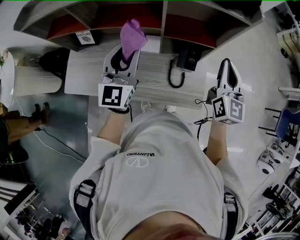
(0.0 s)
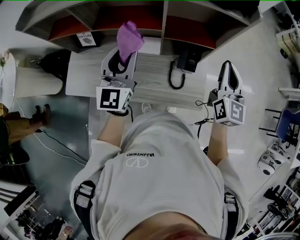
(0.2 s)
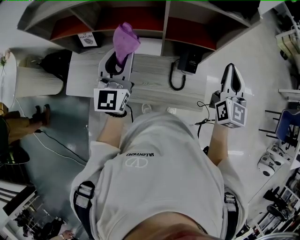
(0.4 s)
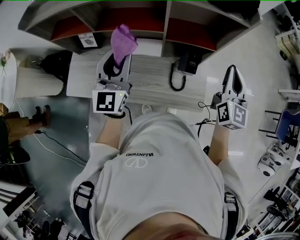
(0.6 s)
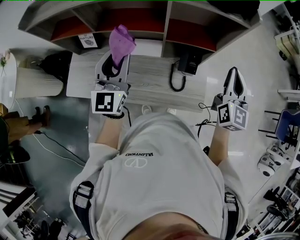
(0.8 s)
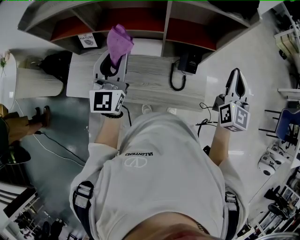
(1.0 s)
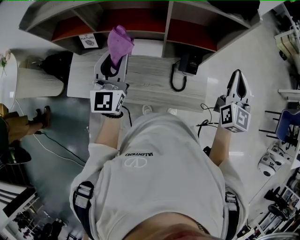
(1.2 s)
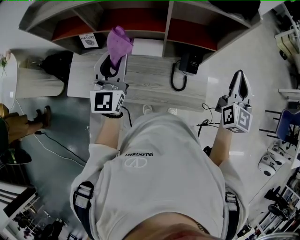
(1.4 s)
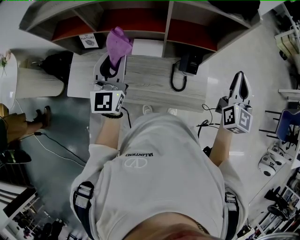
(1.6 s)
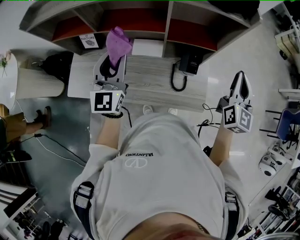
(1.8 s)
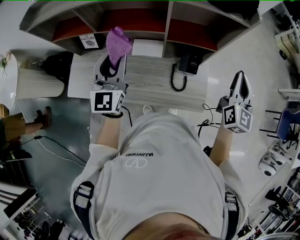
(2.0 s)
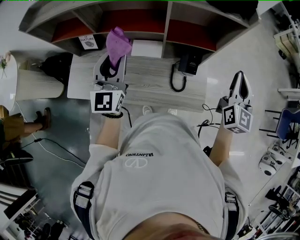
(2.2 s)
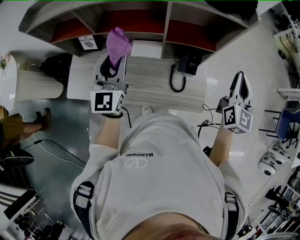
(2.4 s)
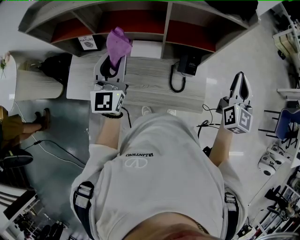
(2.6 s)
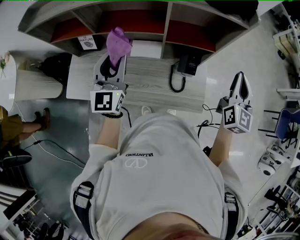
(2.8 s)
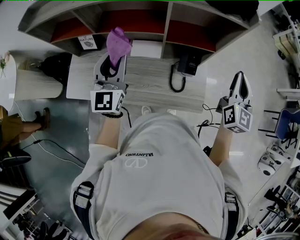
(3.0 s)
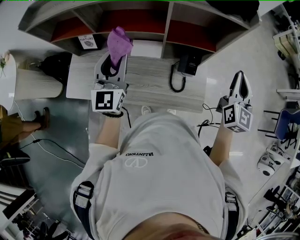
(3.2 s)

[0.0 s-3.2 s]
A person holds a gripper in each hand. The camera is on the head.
0.0 to 1.6 s: The right gripper is displaced to the right by some 5 cm; the left gripper shifts about 5 cm to the left.
1.6 to 3.2 s: The two grippers keep their place.

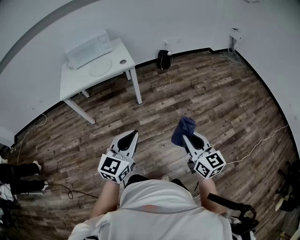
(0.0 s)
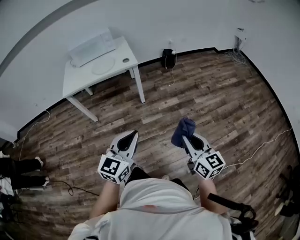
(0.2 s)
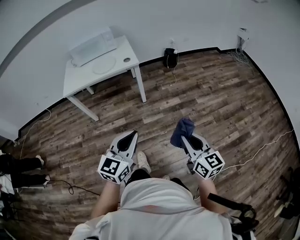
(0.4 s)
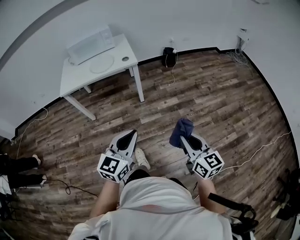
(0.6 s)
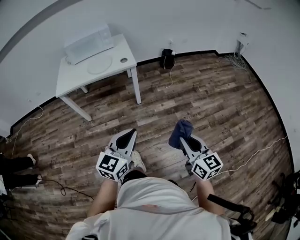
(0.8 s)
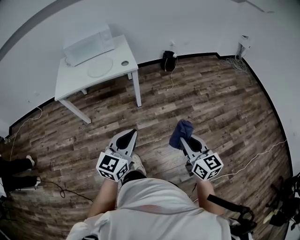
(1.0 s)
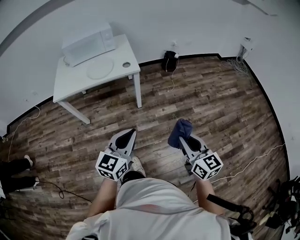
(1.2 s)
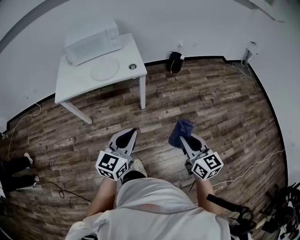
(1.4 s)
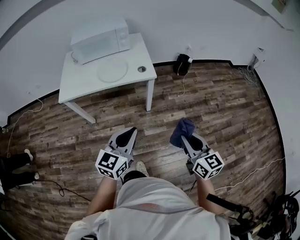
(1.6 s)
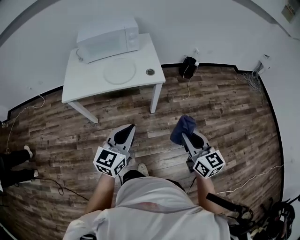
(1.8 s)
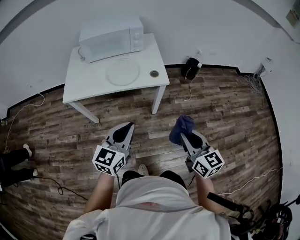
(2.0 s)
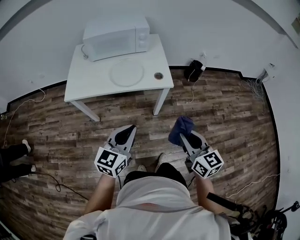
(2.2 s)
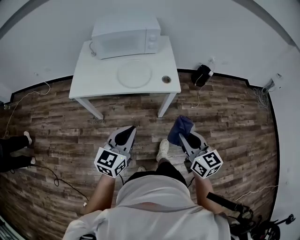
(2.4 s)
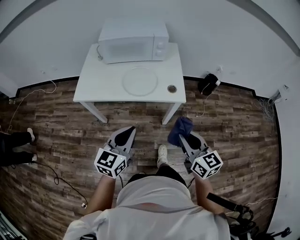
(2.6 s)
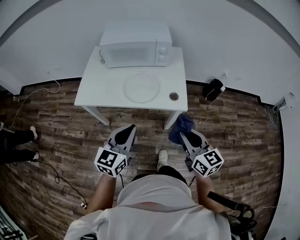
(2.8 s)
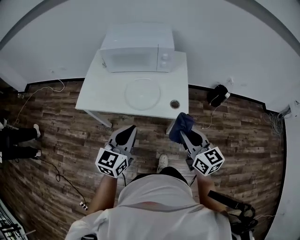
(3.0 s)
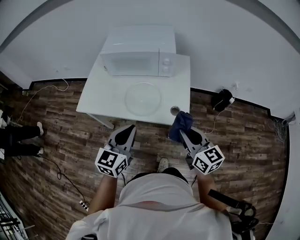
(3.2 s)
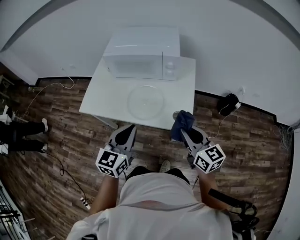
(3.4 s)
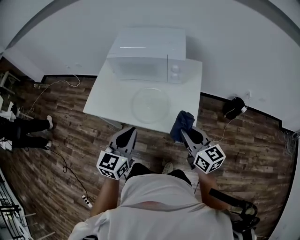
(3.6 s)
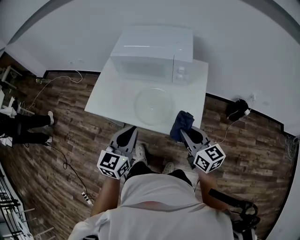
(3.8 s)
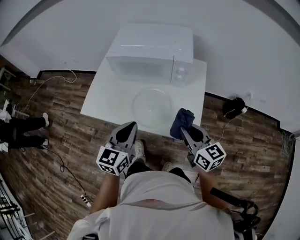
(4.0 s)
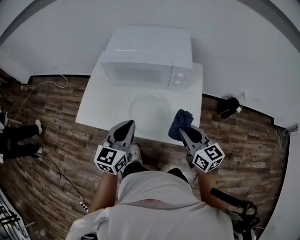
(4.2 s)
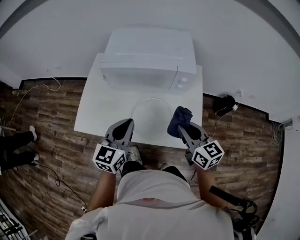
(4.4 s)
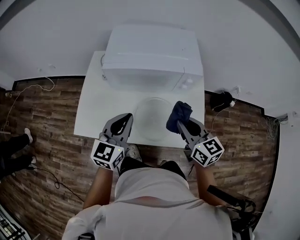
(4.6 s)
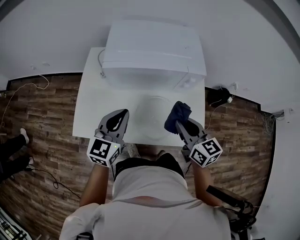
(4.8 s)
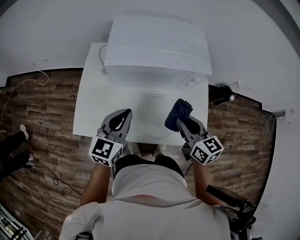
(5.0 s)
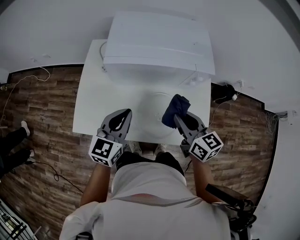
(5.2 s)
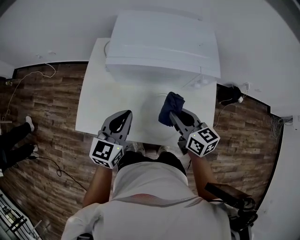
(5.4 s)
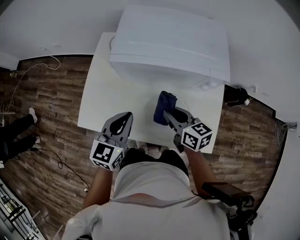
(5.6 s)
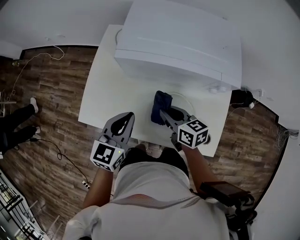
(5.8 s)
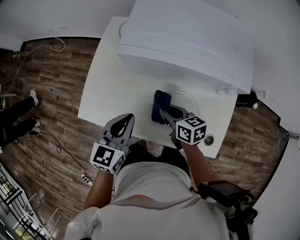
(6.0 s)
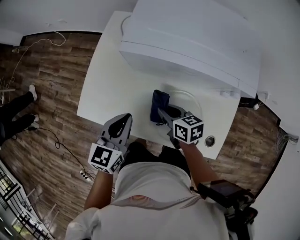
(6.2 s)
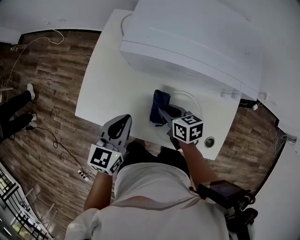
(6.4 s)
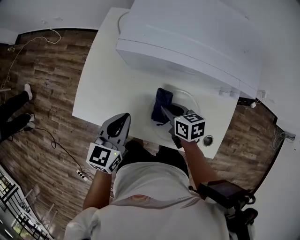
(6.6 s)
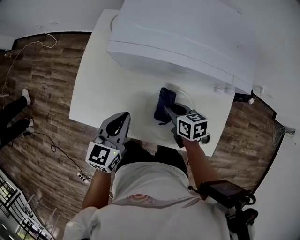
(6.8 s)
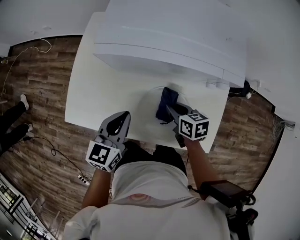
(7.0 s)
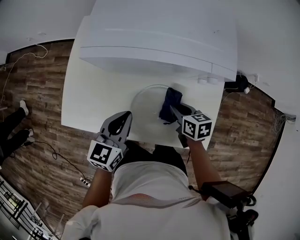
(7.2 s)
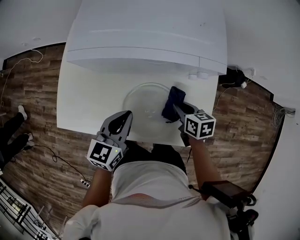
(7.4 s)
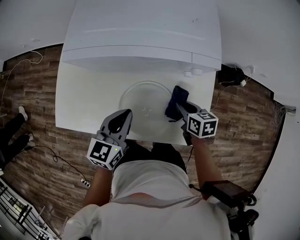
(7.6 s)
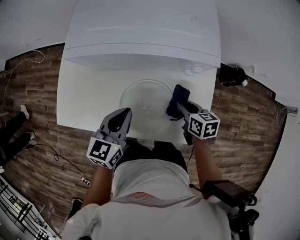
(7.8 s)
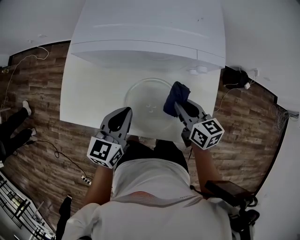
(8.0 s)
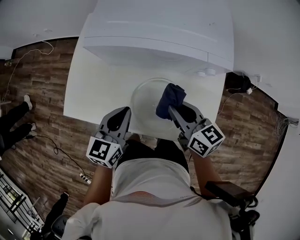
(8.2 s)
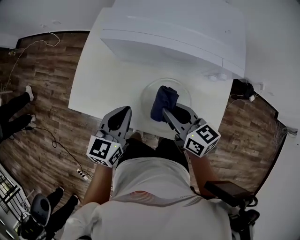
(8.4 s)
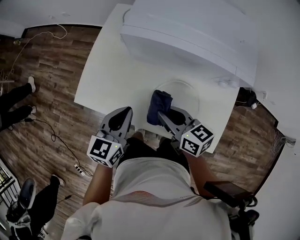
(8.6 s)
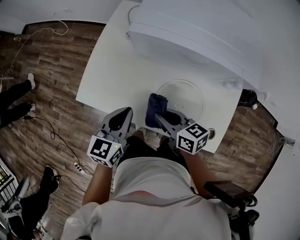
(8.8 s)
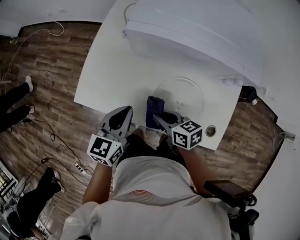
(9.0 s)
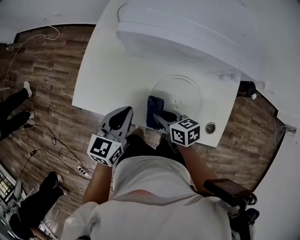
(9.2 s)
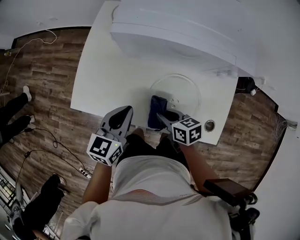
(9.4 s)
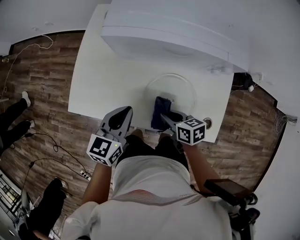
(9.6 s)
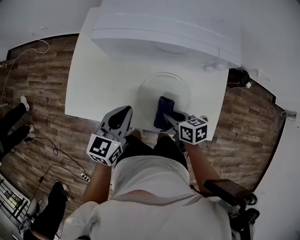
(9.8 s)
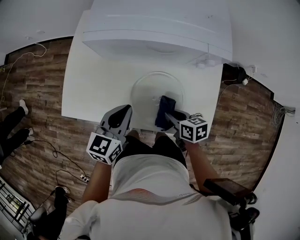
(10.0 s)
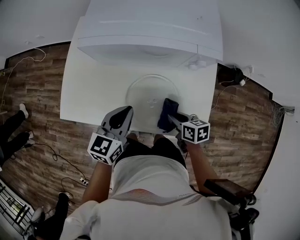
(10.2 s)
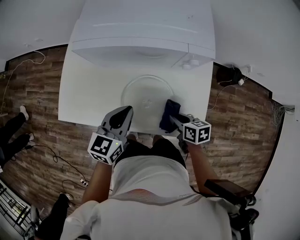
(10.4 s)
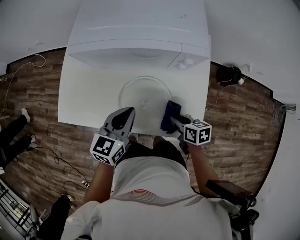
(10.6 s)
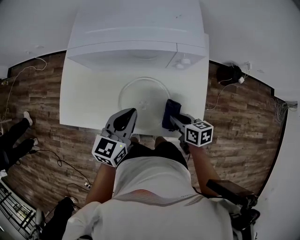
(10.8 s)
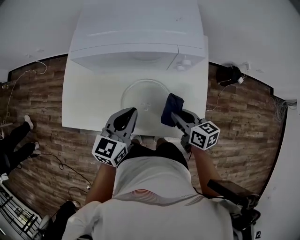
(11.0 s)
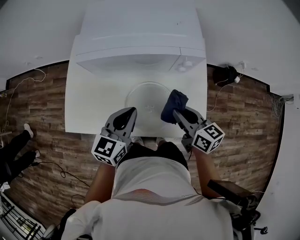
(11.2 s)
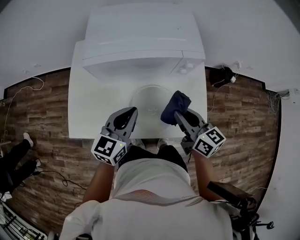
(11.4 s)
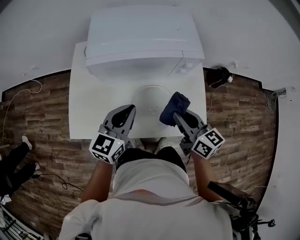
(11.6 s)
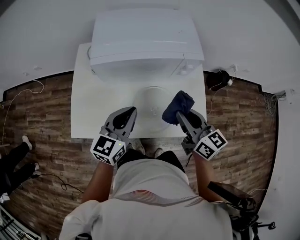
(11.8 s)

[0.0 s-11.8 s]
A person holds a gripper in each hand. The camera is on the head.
0.0 to 1.4 s: The two grippers go about 25 cm forward.
1.4 to 3.0 s: The left gripper travels forward and to the left by about 35 cm, and changes its angle by roughly 20 degrees; the right gripper shifts approximately 40 cm forward, and changes its angle by approximately 20 degrees.
3.0 to 4.4 s: The two grippers go about 25 cm forward.
4.4 to 6.0 s: The left gripper is displaced downward, to the left and forward by about 15 cm. Meanwhile the right gripper goes about 30 cm downward, to the left and forward, and swivels approximately 30 degrees.
6.0 to 7.4 s: The left gripper shifts some 10 cm to the right. Meanwhile the right gripper travels to the right by roughly 20 cm, and turns by approximately 20 degrees.
7.4 to 8.8 s: The right gripper heads to the left, covering about 20 cm, and swivels approximately 30 degrees, while the left gripper goes about 15 cm to the left.
8.8 to 10.4 s: The left gripper heads to the right, covering approximately 15 cm; the right gripper goes about 20 cm to the right and backward, and turns by roughly 30 degrees.
10.4 to 11.8 s: The right gripper is displaced upward by roughly 25 cm, and angles its fingers upward, by roughly 40 degrees, while the left gripper travels upward by about 10 cm.

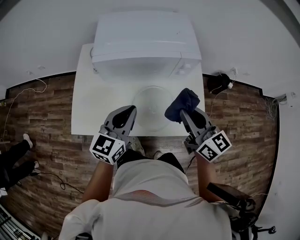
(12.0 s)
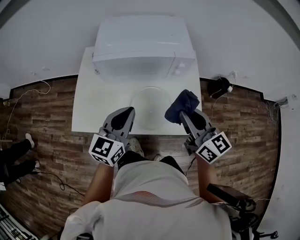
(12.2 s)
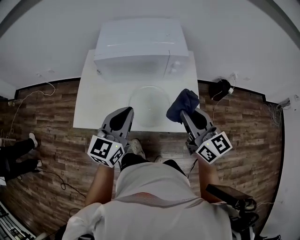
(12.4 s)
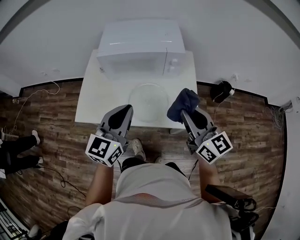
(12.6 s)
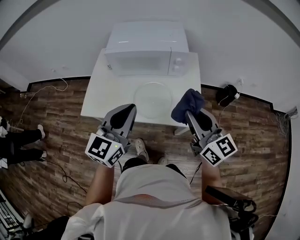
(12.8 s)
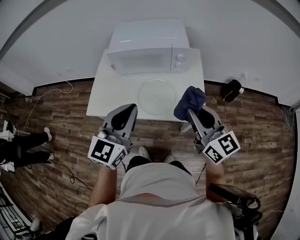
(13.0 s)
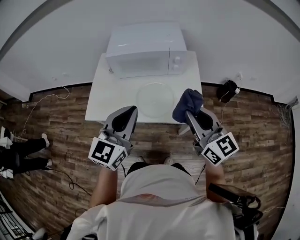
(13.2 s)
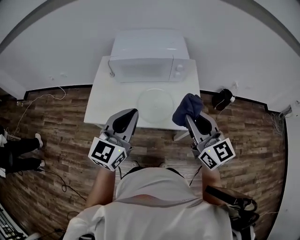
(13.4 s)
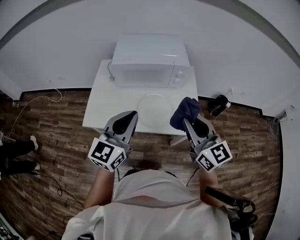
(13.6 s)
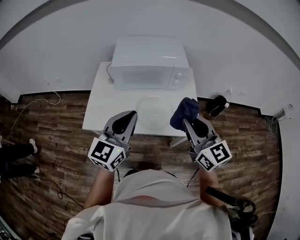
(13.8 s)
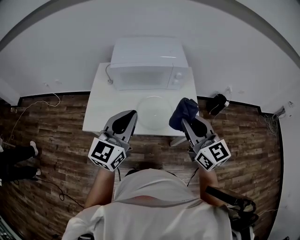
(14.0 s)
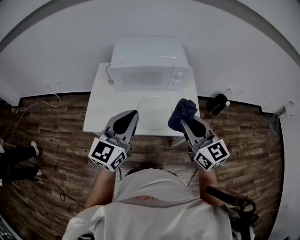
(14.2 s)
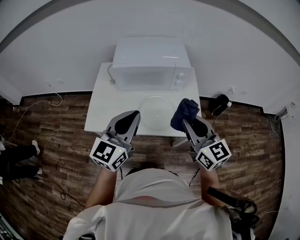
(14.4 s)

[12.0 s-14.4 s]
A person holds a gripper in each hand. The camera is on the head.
12.0 to 13.2 s: The two grippers go approximately 20 cm backward and upward.
13.2 to 14.4 s: The left gripper changes place by about 5 cm. Meanwhile the right gripper is displaced to the left by approximately 5 cm.

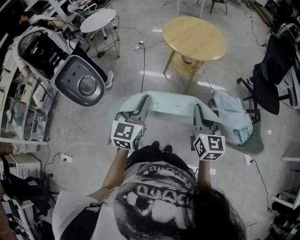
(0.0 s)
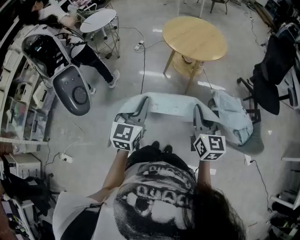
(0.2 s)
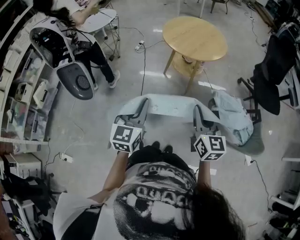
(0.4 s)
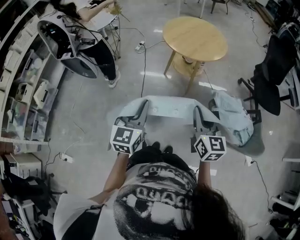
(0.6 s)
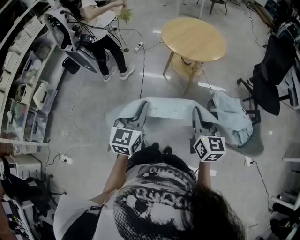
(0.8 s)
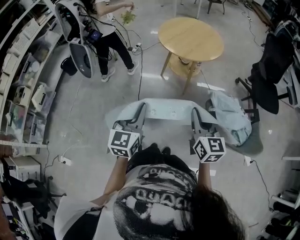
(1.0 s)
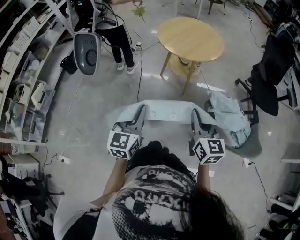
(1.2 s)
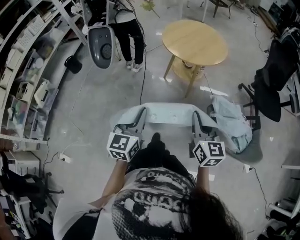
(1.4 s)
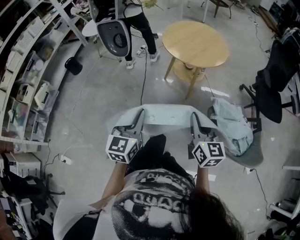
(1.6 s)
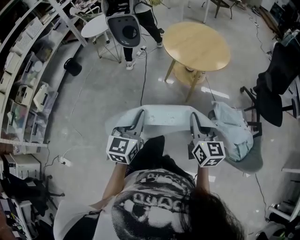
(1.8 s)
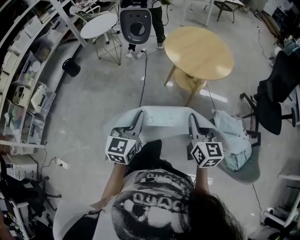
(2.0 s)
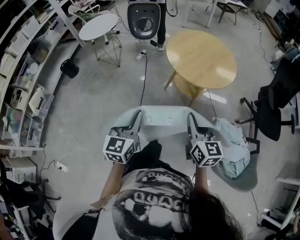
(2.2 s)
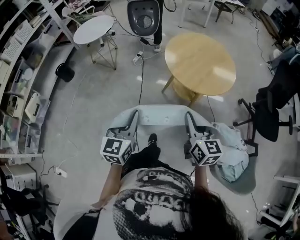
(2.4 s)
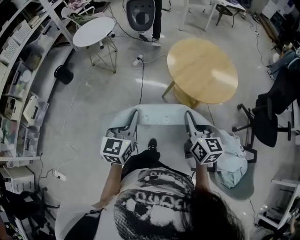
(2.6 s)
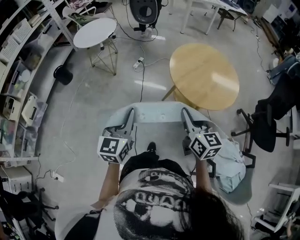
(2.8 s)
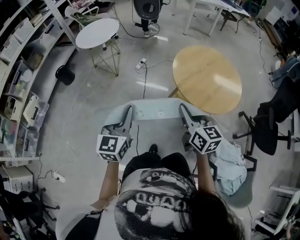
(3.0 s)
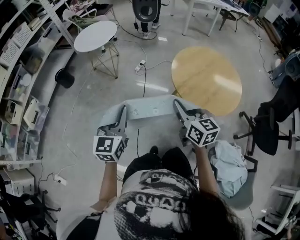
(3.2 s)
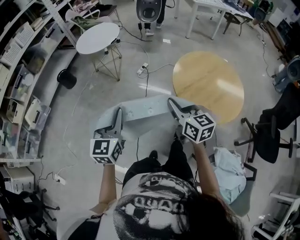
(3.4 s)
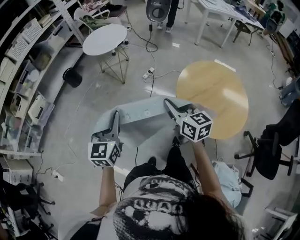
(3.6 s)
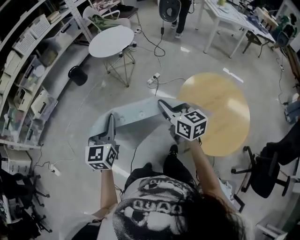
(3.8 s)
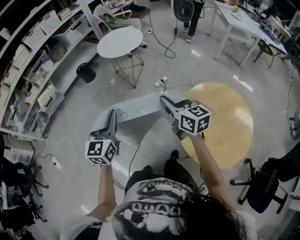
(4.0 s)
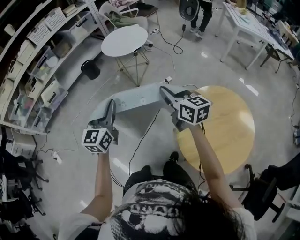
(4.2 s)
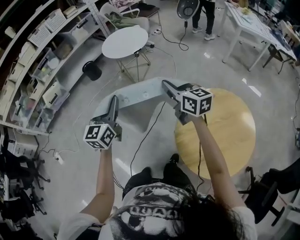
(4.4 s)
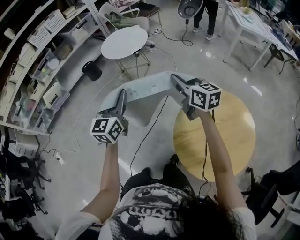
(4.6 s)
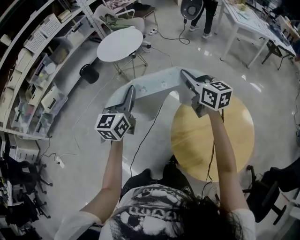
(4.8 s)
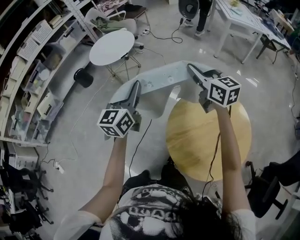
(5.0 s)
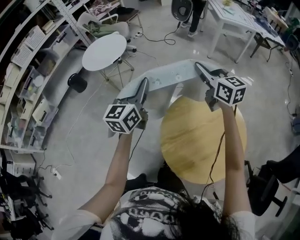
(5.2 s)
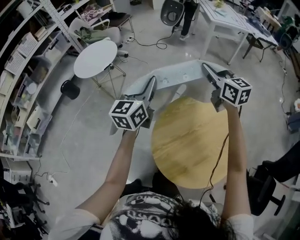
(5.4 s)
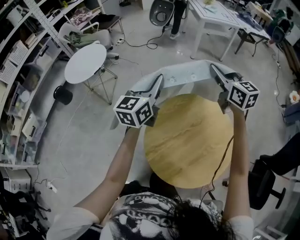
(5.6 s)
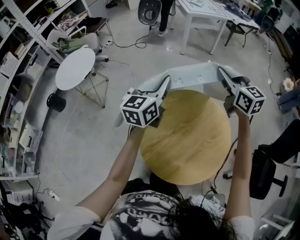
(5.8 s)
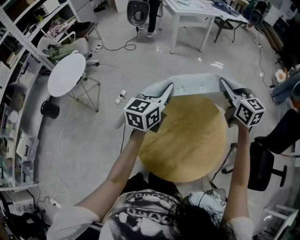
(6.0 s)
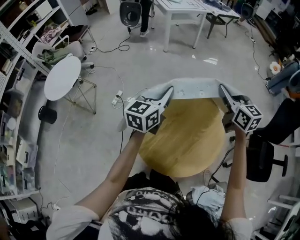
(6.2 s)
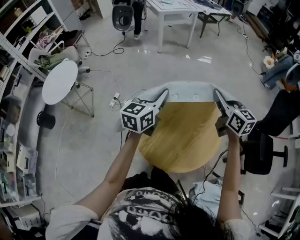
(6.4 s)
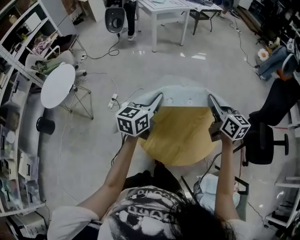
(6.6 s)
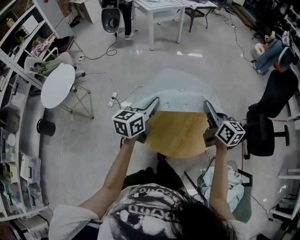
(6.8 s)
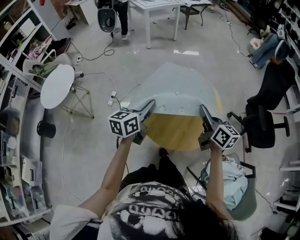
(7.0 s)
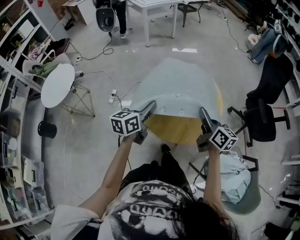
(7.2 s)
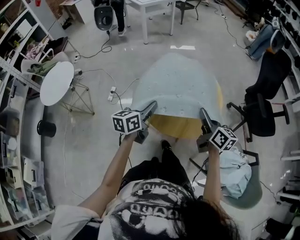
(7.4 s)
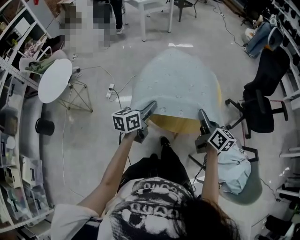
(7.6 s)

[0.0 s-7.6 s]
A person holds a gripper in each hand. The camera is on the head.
0.0 to 1.6 s: There are only small adjustments of the grippers.
1.6 to 3.0 s: The two grippers go approximately 35 cm forward.
3.0 to 4.6 s: The right gripper shifts by some 40 cm, and rotates some 40 degrees. Meanwhile the left gripper shifts by some 30 cm, and swivels approximately 30 degrees.
4.6 to 6.0 s: The two grippers travel together, about 40 cm. The right gripper rotates some 40 degrees. The left gripper turns by approximately 50 degrees.
6.0 to 7.6 s: The right gripper shifts roughly 40 cm backward, and rotates about 40 degrees. Meanwhile the left gripper is displaced backward and downward by about 30 cm, and turns by approximately 30 degrees.
